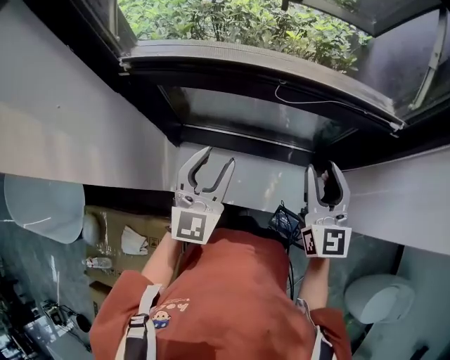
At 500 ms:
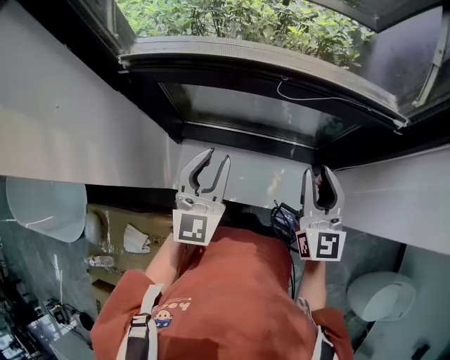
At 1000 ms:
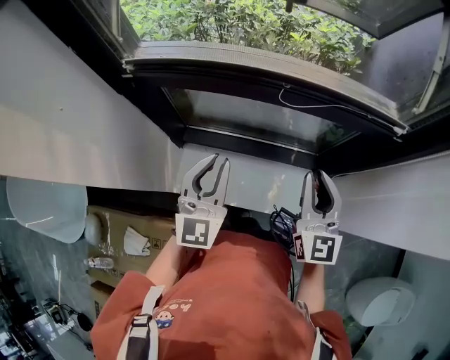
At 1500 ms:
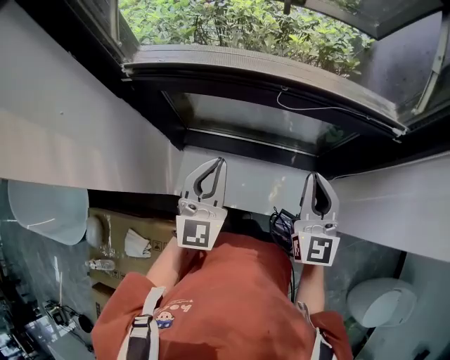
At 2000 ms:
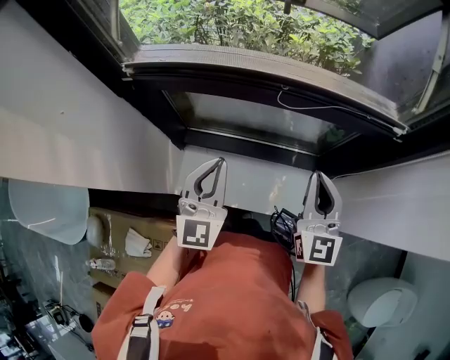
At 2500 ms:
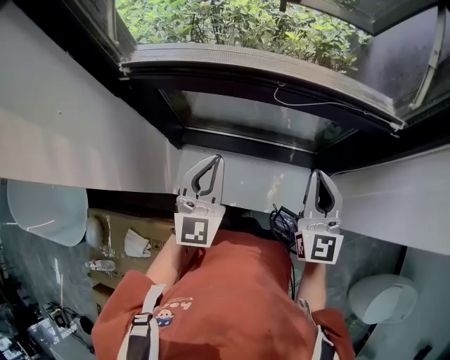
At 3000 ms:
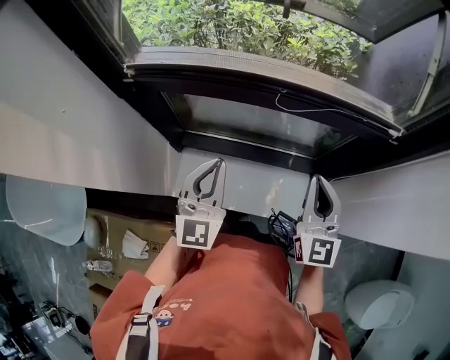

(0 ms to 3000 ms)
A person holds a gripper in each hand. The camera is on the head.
0 ms - 1500 ms: The left gripper closes. The right gripper closes up.
1500 ms - 3000 ms: Neither gripper changes place.

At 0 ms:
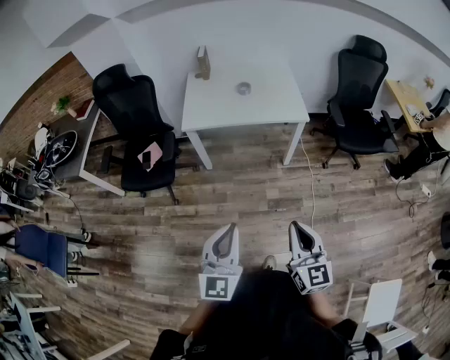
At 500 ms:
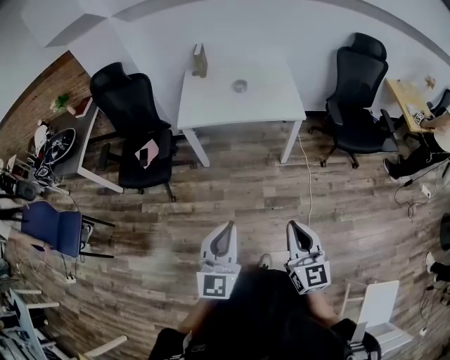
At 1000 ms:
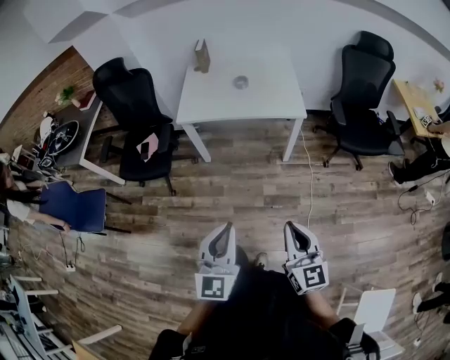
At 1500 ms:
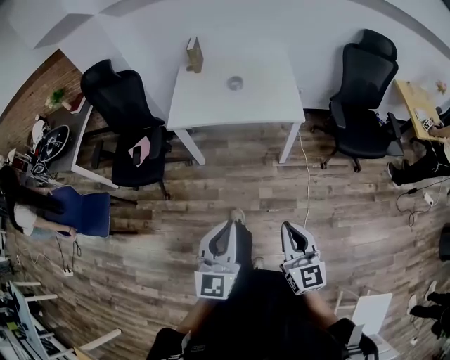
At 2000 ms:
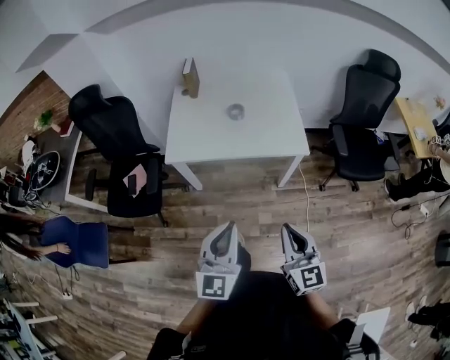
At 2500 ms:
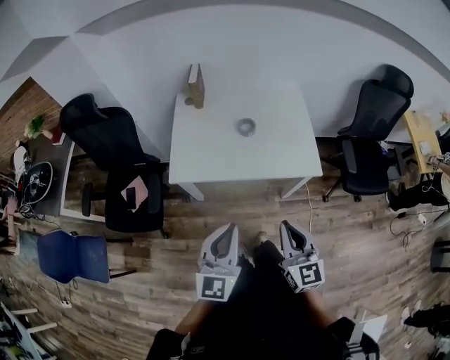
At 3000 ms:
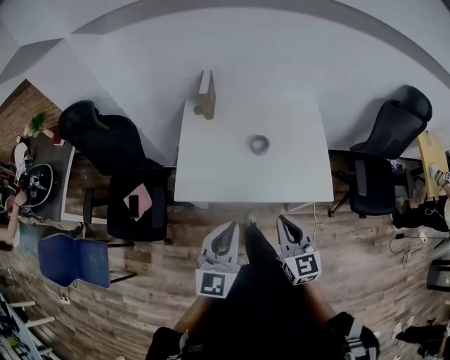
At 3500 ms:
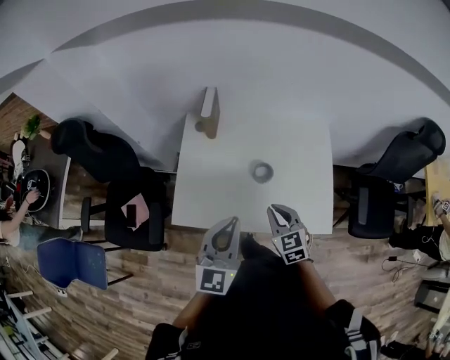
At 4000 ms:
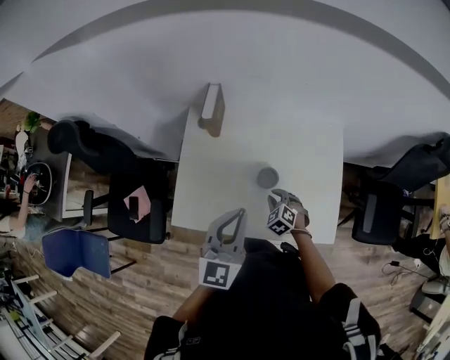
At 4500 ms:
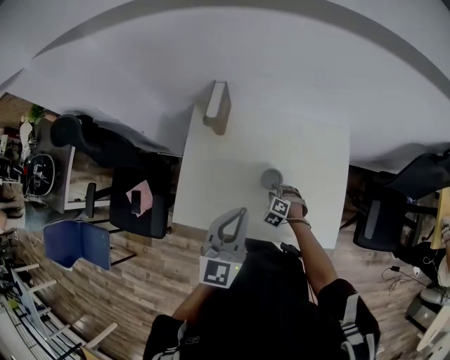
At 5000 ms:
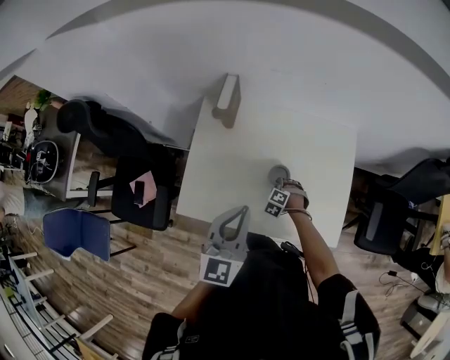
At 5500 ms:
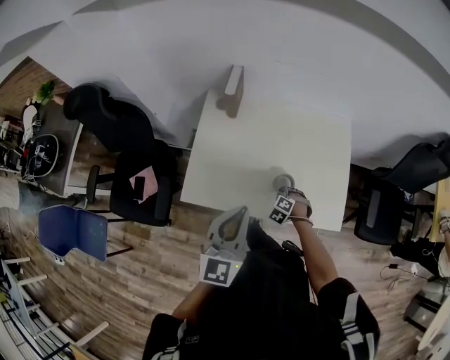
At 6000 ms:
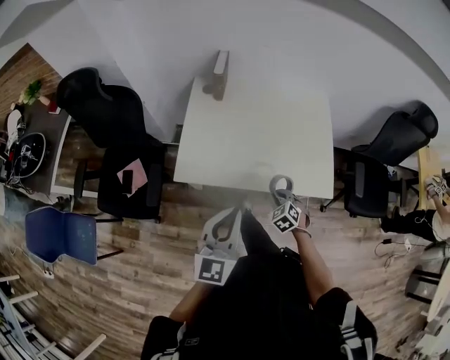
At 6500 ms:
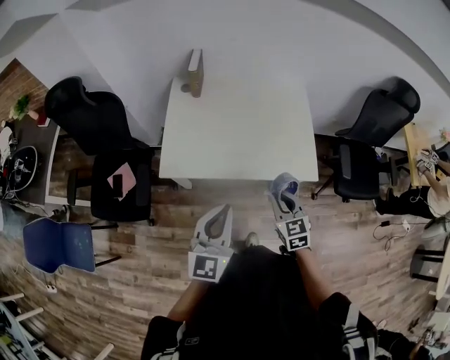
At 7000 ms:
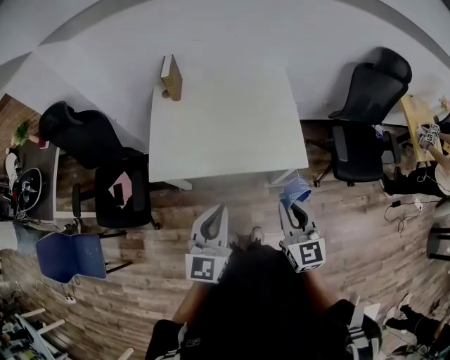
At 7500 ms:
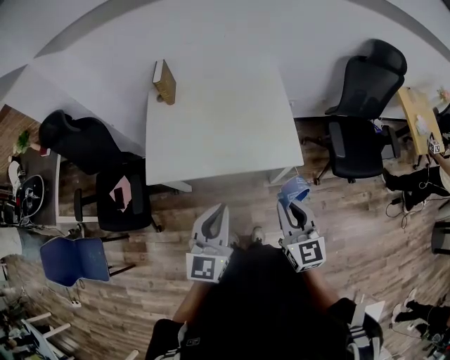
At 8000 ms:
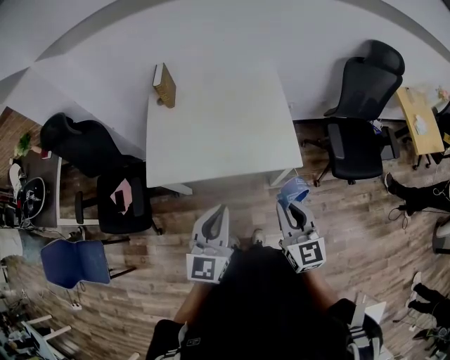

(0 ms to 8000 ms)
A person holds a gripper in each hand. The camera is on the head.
0 ms - 2000 ms: The grippers both shift forward by some 25 cm.
2000 ms - 4000 ms: The pair of grippers is taken forward, some 60 cm. The right gripper moves downward, about 30 cm, and tips its fingers downward by approximately 50 degrees.
4000 ms - 6000 ms: Both grippers move backward, approximately 25 cm.
6000 ms - 8000 ms: The left gripper heads to the right and backward, covering about 15 cm. Meanwhile the right gripper is displaced upward, to the right and backward by some 35 cm, and tilts its fingers roughly 50 degrees upward.

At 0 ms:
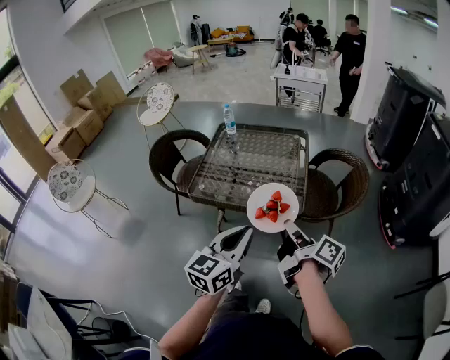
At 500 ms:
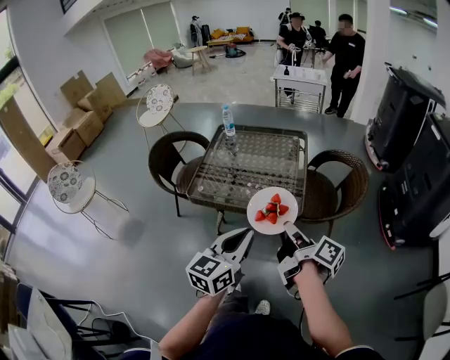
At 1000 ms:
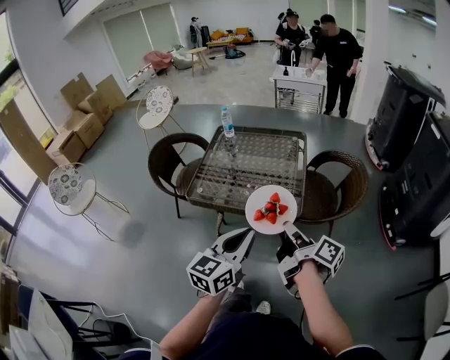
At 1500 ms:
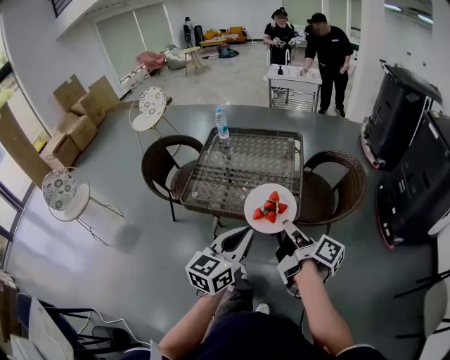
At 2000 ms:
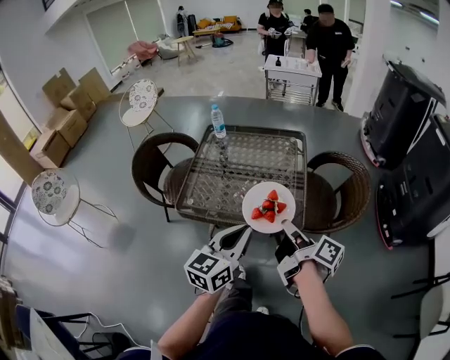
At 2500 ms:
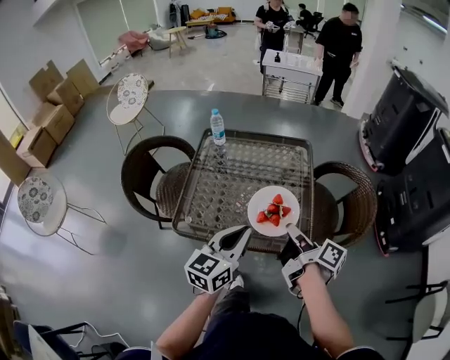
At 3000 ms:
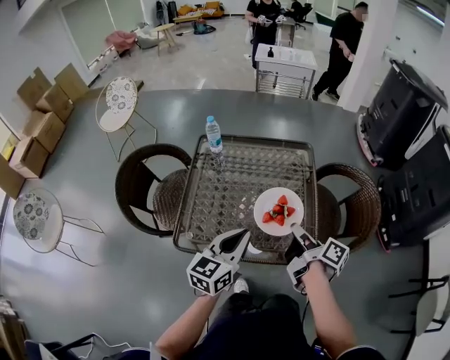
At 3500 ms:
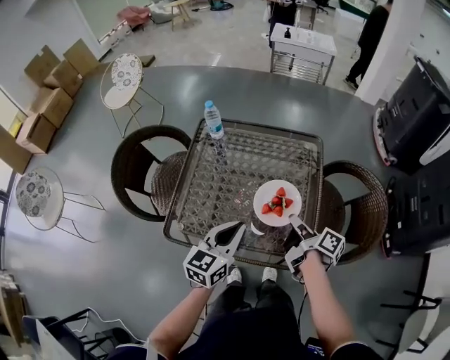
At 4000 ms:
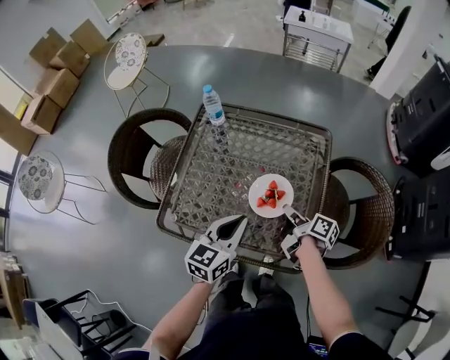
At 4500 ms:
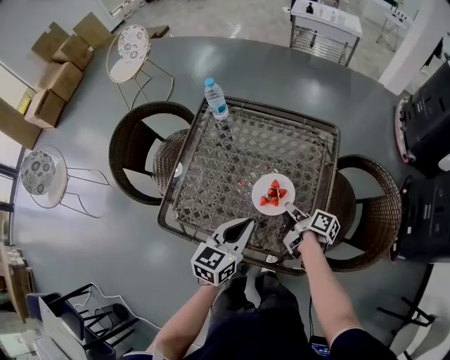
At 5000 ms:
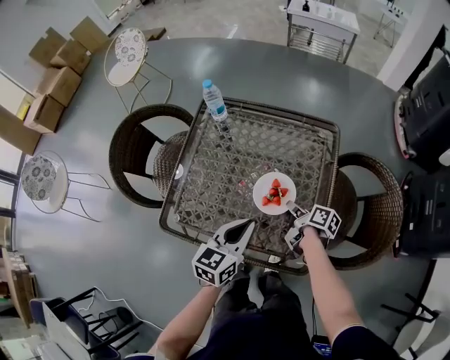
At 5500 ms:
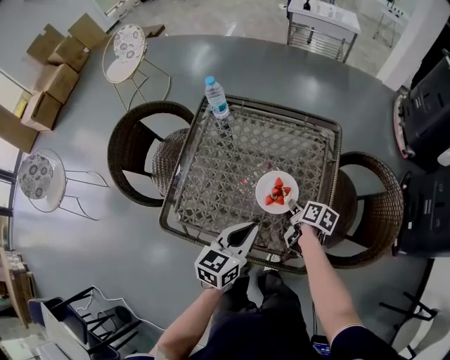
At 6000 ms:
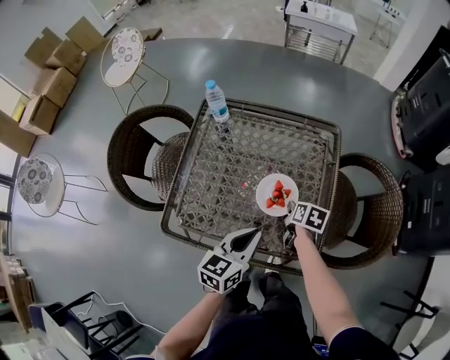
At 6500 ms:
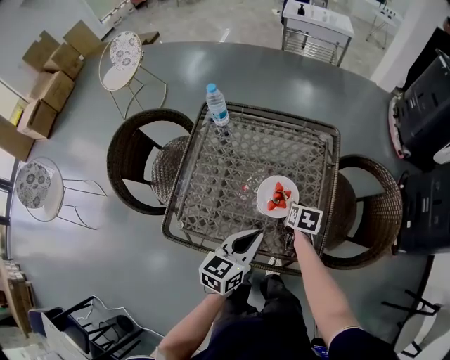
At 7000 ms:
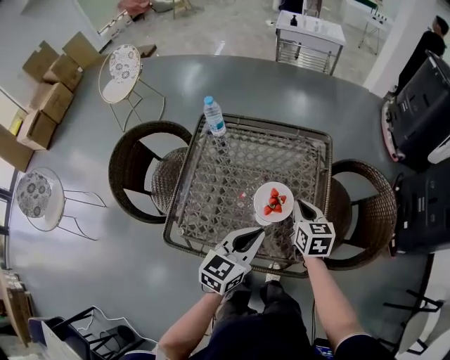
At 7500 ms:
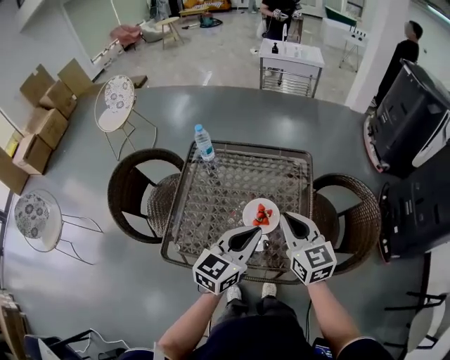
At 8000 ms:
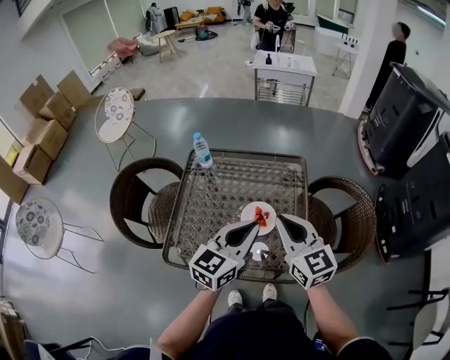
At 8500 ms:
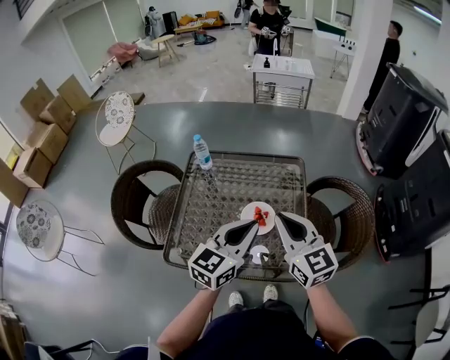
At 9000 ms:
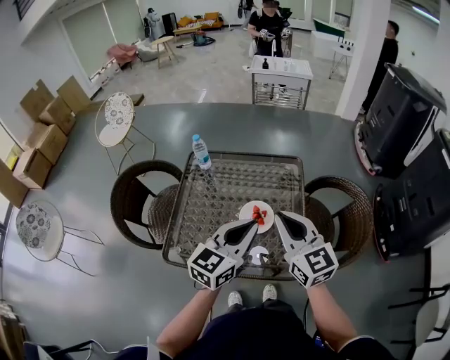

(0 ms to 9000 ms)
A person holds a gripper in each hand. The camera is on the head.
0 ms - 2000 ms: Both grippers move forward, about 10 cm.
2000 ms - 4500 ms: The two grippers go some 35 cm forward and downward. The right gripper turns by roughly 30 degrees.
4500 ms - 7000 ms: The right gripper shifts roughly 10 cm upward, and rolls counterclockwise, seen from behind, by some 60 degrees.
7000 ms - 9000 ms: The right gripper travels upward and backward by approximately 25 cm, and turns by roughly 30 degrees; the left gripper is displaced upward by some 15 cm.

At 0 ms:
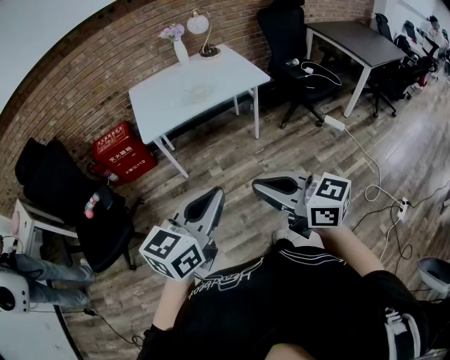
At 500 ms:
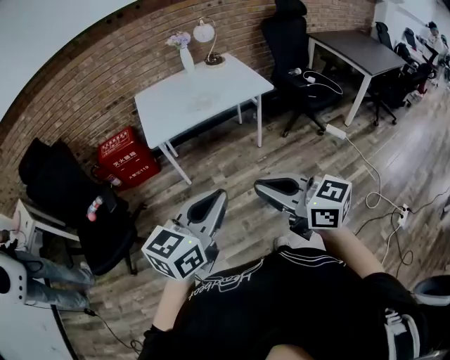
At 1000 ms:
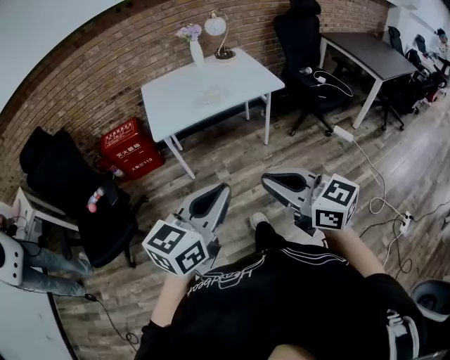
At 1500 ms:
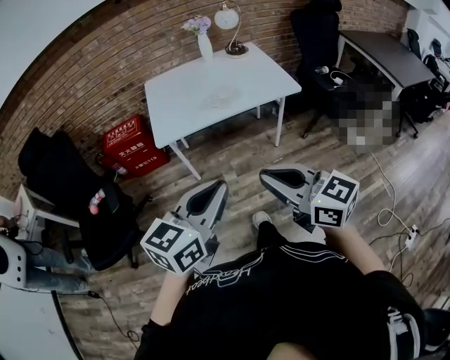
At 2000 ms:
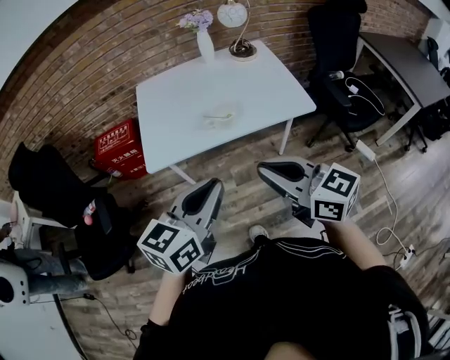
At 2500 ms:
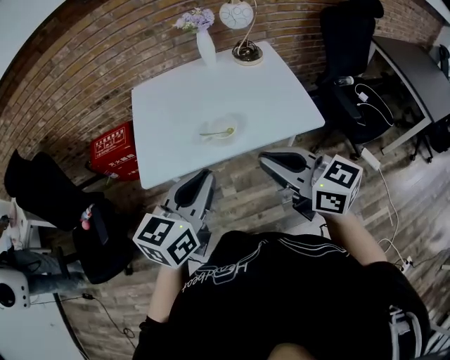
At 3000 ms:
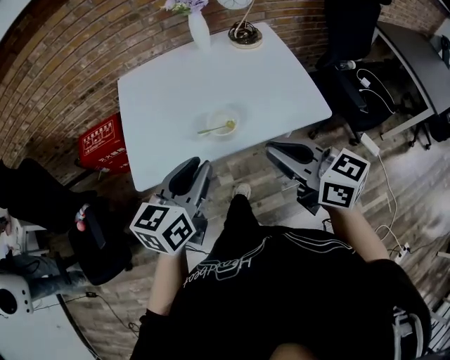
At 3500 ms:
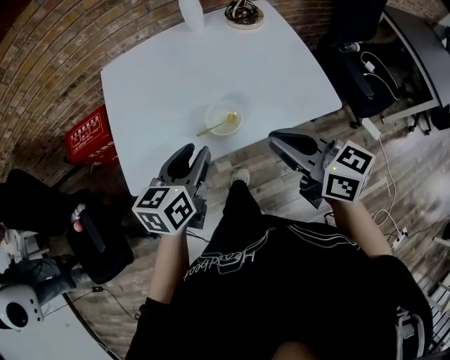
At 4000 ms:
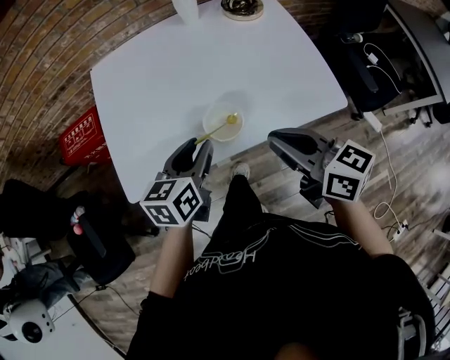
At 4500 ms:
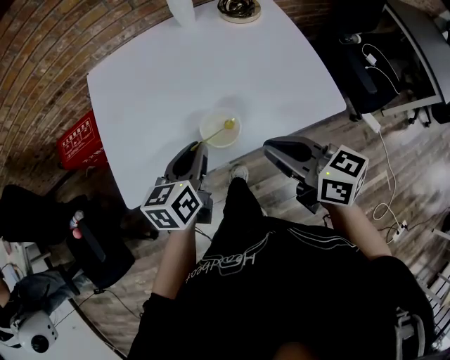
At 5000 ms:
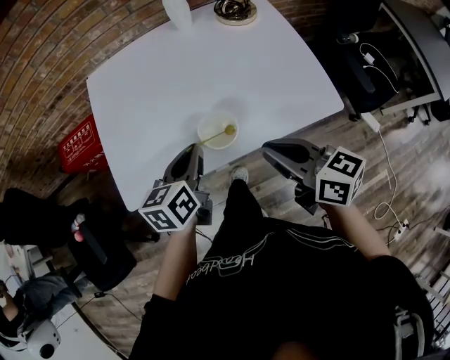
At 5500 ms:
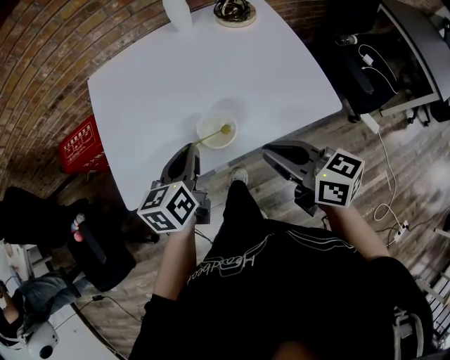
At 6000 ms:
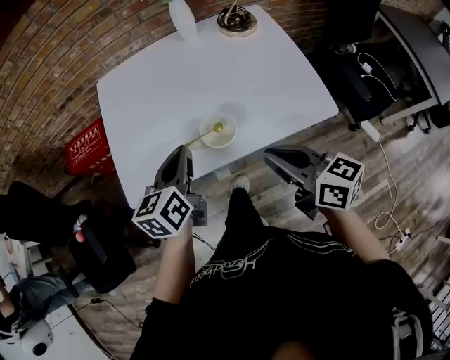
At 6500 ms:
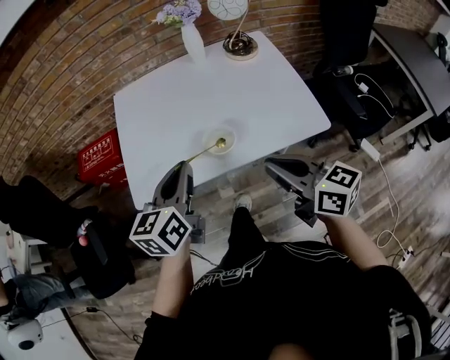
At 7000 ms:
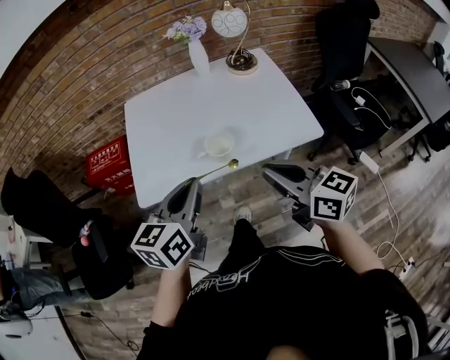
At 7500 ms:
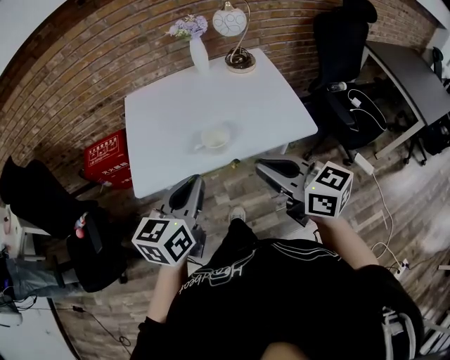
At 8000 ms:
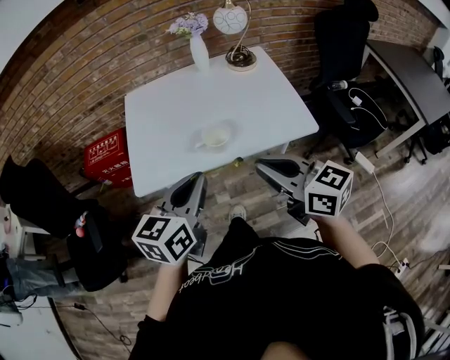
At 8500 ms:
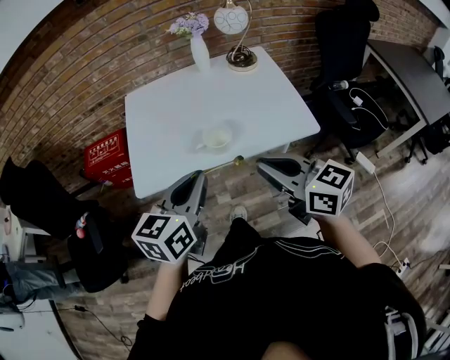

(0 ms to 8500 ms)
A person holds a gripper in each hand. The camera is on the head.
0 ms - 2000 ms: Both grippers travel together forward, approximately 35 cm.
2000 ms - 4000 ms: Both grippers travel together forward and downward, about 35 cm. The right gripper turns by roughly 20 degrees. The left gripper swivels roughly 20 degrees, and opens its fingers.
4000 ms - 6500 ms: The right gripper heads backward, covering approximately 5 cm, while the left gripper heads upward and backward, covering approximately 15 cm, and closes.
6500 ms - 8500 ms: The left gripper goes about 10 cm backward, while the right gripper moves backward and upward, about 10 cm.
